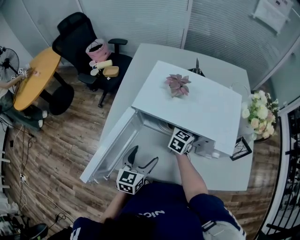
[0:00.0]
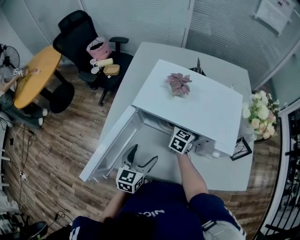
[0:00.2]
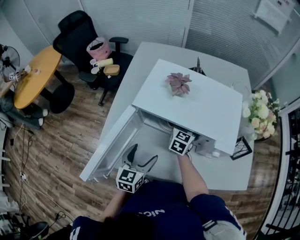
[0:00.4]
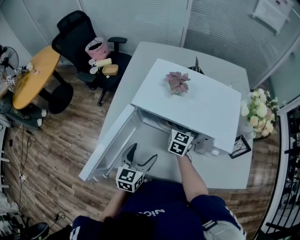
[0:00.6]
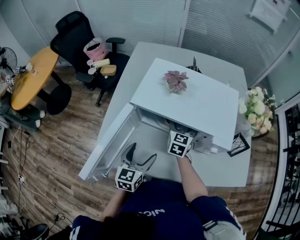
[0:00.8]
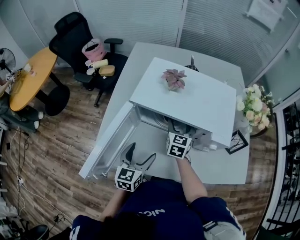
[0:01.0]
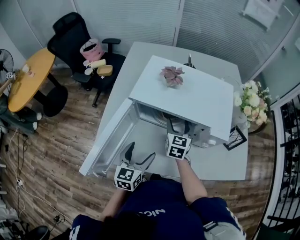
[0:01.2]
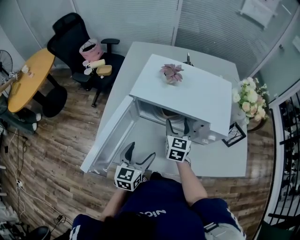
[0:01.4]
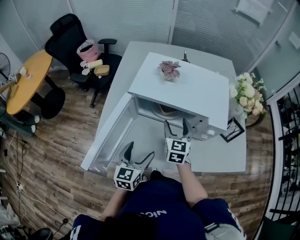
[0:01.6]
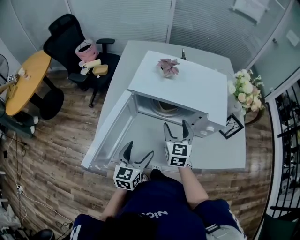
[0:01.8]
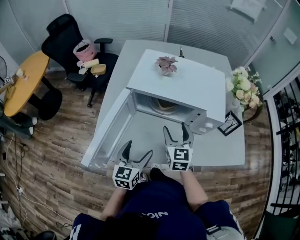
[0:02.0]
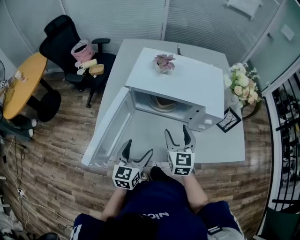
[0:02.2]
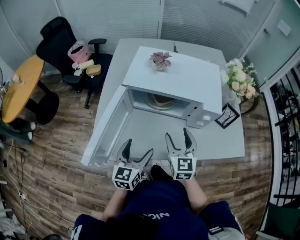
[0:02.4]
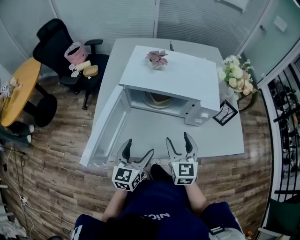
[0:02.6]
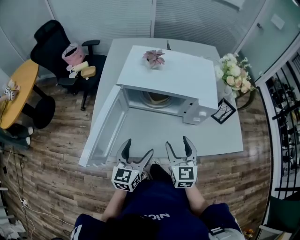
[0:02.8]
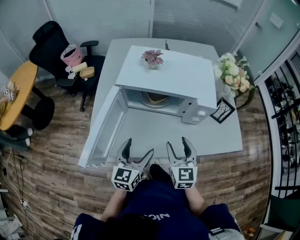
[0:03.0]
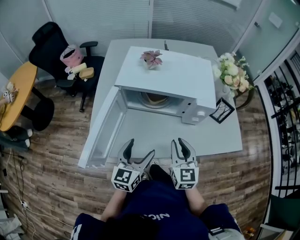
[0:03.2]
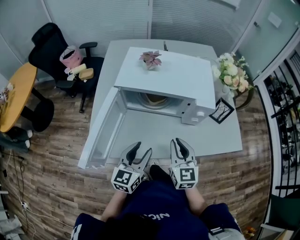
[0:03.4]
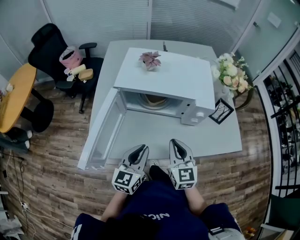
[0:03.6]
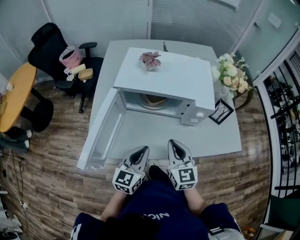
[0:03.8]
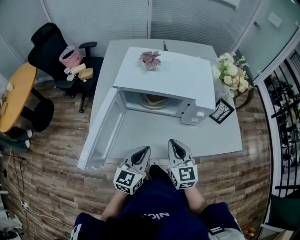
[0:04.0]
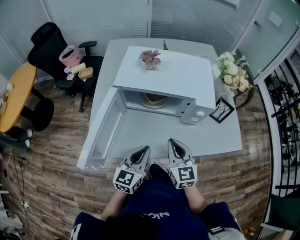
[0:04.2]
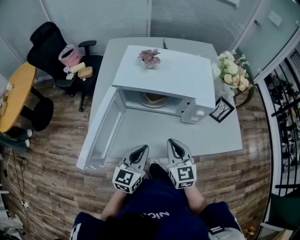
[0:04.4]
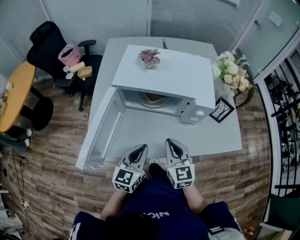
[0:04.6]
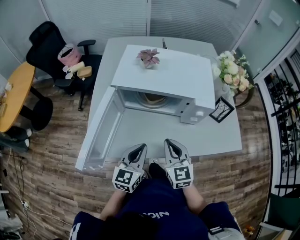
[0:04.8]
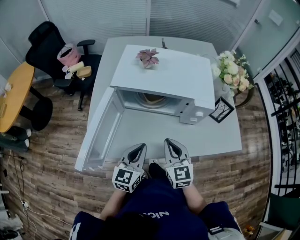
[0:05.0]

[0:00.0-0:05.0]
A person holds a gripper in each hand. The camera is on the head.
0:00.0 to 0:01.6: The right gripper moves backward and upward, about 15 cm, and opens up. Meanwhile the left gripper is displaced backward by approximately 5 cm.
0:01.6 to 0:03.4: The left gripper shifts by roughly 5 cm, and closes its fingers. The right gripper travels backward by some 15 cm, and closes up.
0:03.4 to 0:05.0: The left gripper closes up.

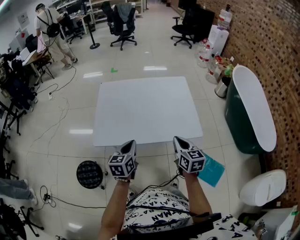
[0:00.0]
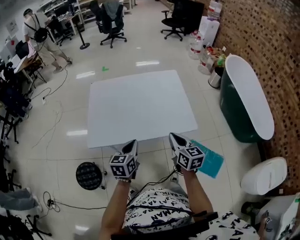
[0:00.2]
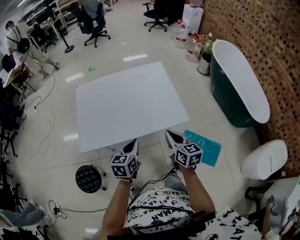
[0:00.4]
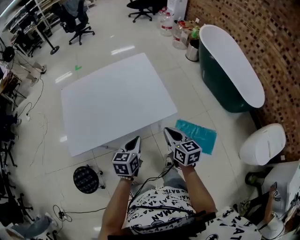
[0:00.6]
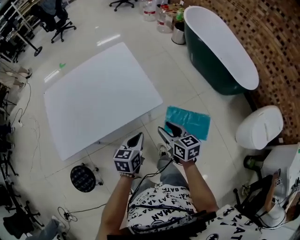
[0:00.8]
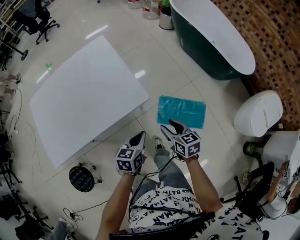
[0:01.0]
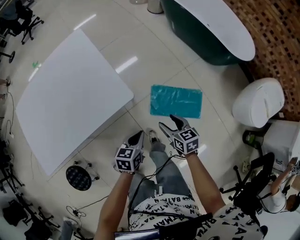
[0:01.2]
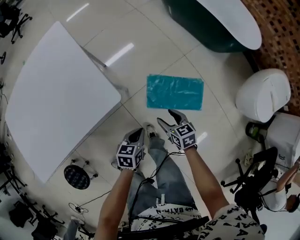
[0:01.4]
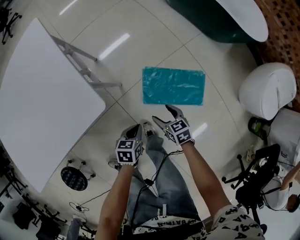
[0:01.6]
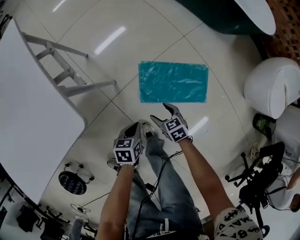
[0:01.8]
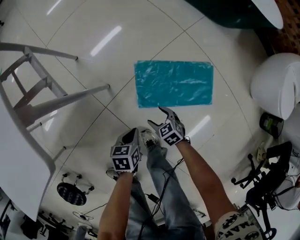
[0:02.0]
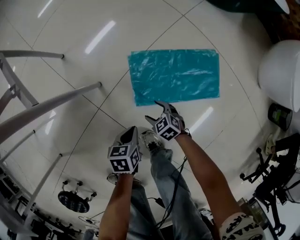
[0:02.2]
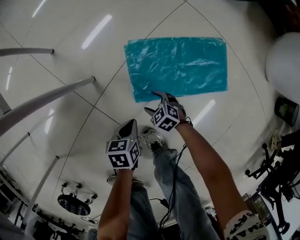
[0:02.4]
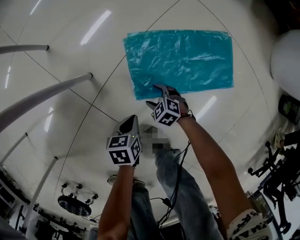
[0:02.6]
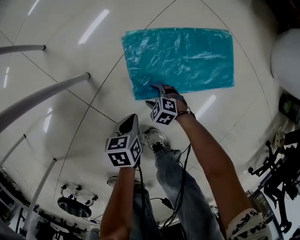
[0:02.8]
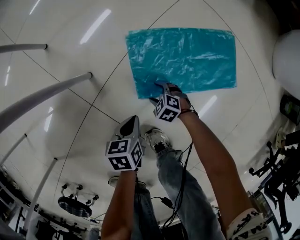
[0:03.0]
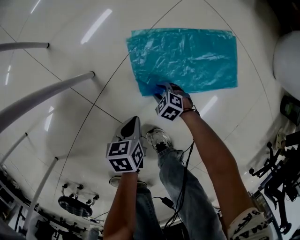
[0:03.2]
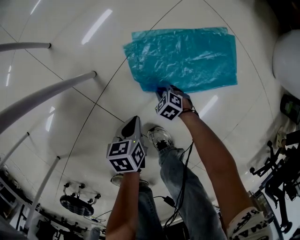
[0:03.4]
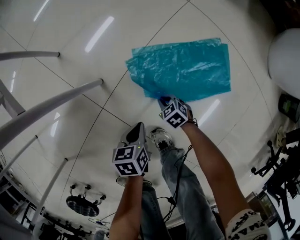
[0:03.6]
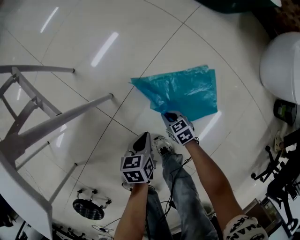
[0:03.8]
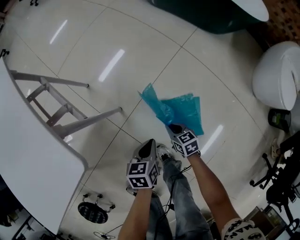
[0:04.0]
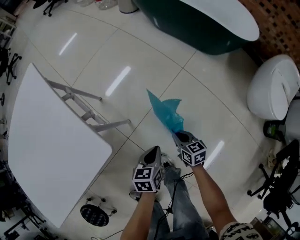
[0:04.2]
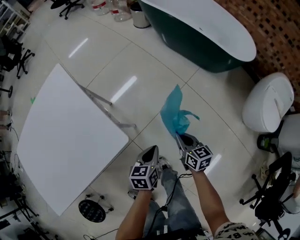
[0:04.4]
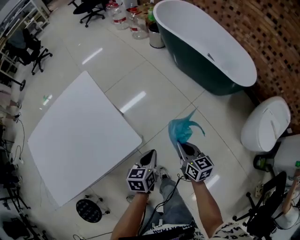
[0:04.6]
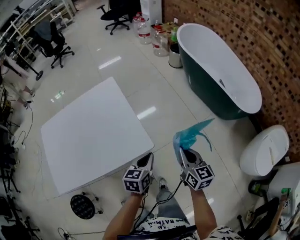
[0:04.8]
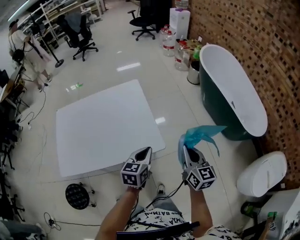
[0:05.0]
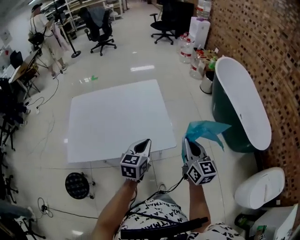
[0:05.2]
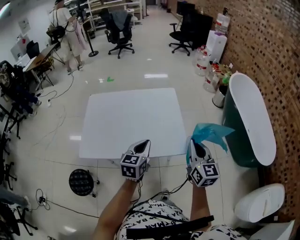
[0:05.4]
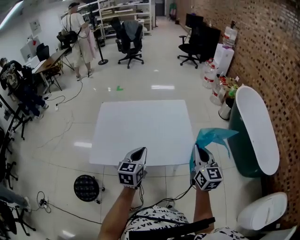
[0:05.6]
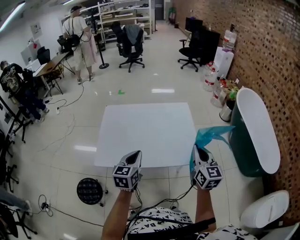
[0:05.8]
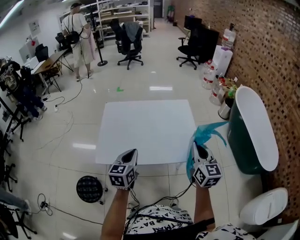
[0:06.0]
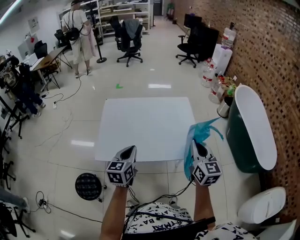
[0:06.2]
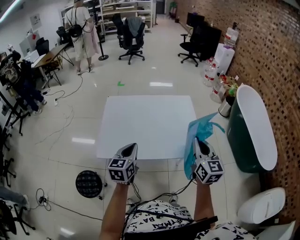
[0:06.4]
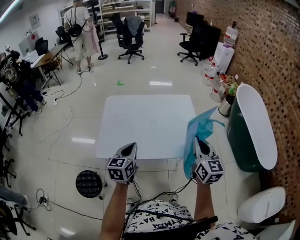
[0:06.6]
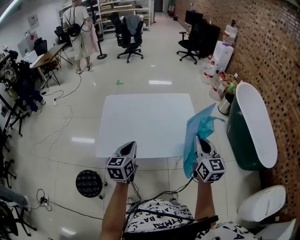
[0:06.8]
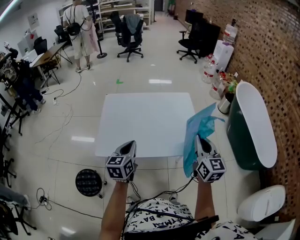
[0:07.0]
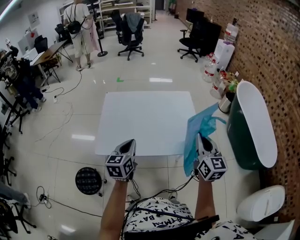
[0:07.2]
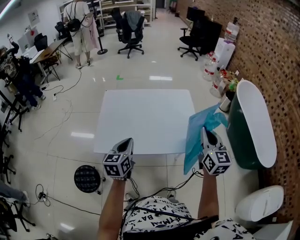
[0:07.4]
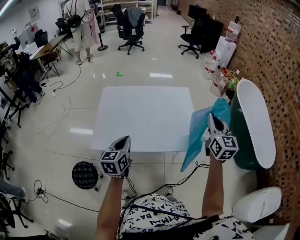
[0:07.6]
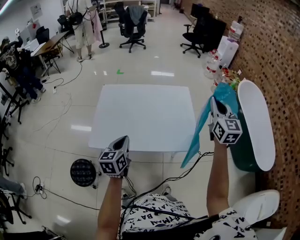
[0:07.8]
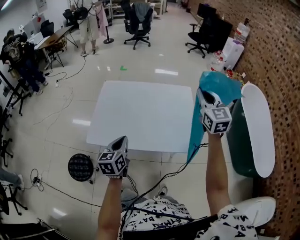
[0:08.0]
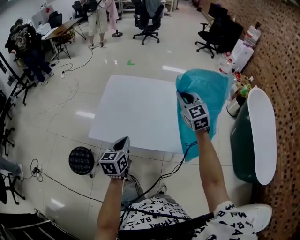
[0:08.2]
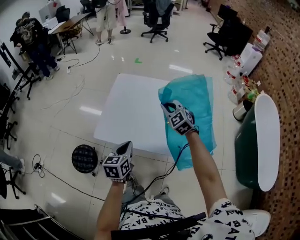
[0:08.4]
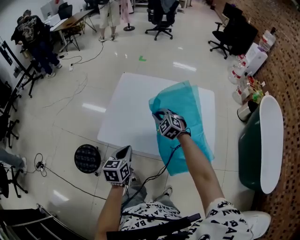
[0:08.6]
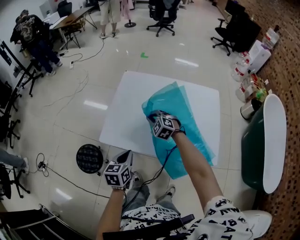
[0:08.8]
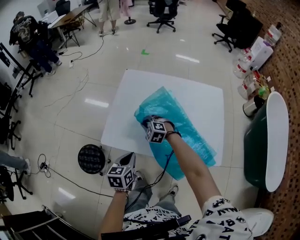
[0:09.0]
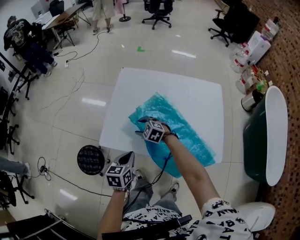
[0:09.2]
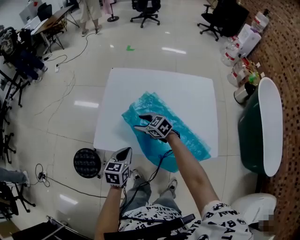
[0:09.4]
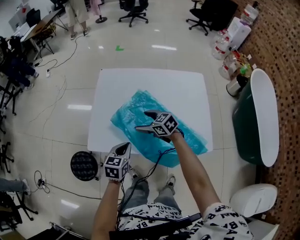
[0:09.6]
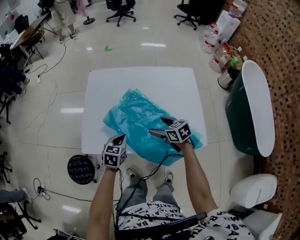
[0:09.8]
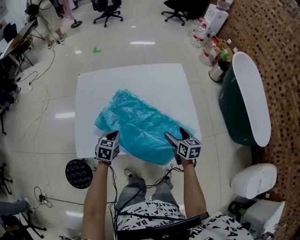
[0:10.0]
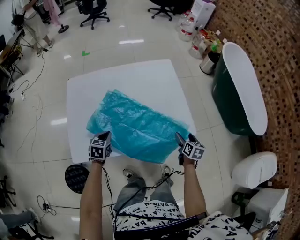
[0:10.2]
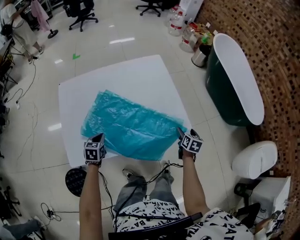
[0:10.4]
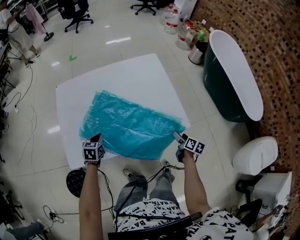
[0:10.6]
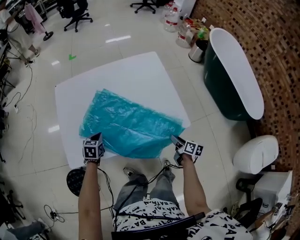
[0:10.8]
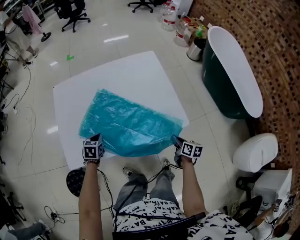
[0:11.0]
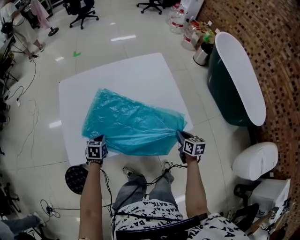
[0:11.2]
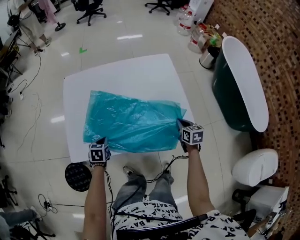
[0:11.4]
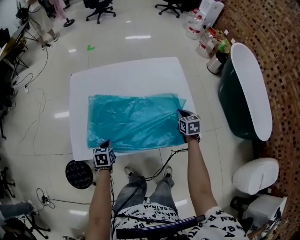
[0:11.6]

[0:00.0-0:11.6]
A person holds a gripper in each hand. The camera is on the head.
0:00.0 to 0:01.4: The left gripper shifts by about 50 cm, and changes its angle by approximately 50 degrees. The right gripper shifts about 35 cm downward, swivels some 30 degrees, and opens.
0:01.4 to 0:02.8: Both grippers travel together downward, some 50 cm. The right gripper swivels some 40 degrees.
0:02.8 to 0:04.4: The two grippers go about 60 cm upward. The right gripper angles its fingers upward, by some 40 degrees, and closes its fingers; the left gripper swivels roughly 20 degrees.
0:04.4 to 0:05.8: The right gripper is displaced upward by about 40 cm, and rotates some 40 degrees; the left gripper changes place by roughly 60 cm, and turns by approximately 50 degrees.
0:05.8 to 0:07.2: The left gripper is displaced to the left by some 5 cm.
0:07.2 to 0:08.8: The right gripper changes place by approximately 50 cm, and tips its fingers downward by some 40 degrees; the left gripper moves downward, roughly 15 cm, and changes its angle by roughly 20 degrees.
0:08.8 to 0:10.2: The left gripper shifts by roughly 20 cm, and swivels some 40 degrees, while the right gripper moves up and down over about 10 cm, changing direction 2 times, rotates around the line of its fingers by some 100 degrees, clockwise from behind, and opens up.
0:10.2 to 0:11.6: The left gripper shifts by approximately 5 cm, while the right gripper shifts roughly 15 cm forward, swivels some 30 degrees, and closes up.

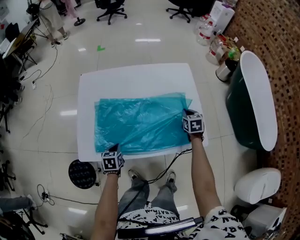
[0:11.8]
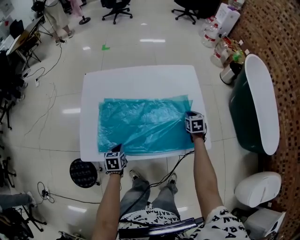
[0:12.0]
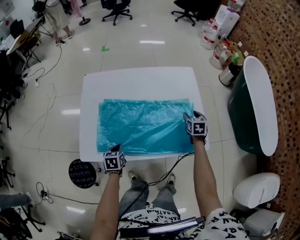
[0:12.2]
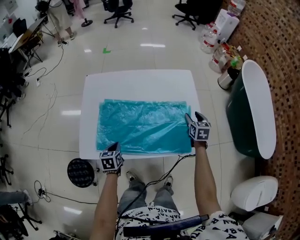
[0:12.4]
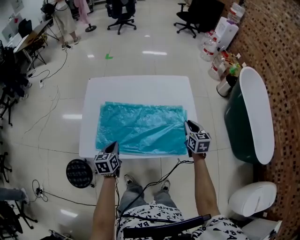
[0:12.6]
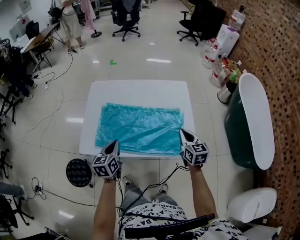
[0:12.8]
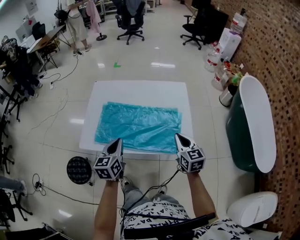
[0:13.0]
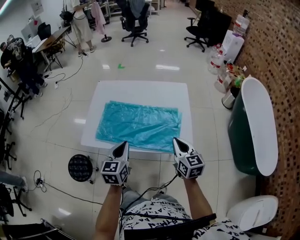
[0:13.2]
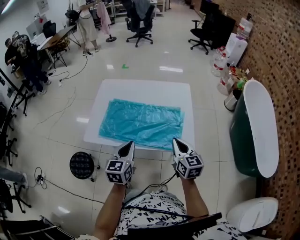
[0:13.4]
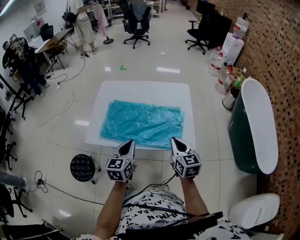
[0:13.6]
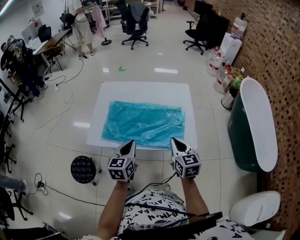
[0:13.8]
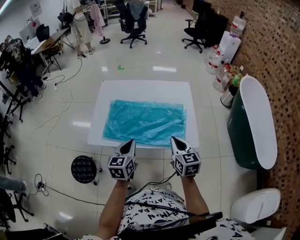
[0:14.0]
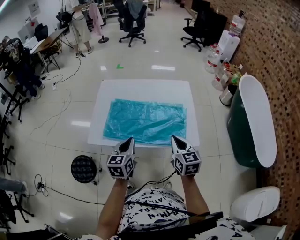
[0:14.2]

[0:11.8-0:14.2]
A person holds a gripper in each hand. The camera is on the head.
0:11.8 to 0:13.0: The left gripper goes roughly 25 cm upward, and points its fingers roughly 30 degrees further upward. The right gripper shifts about 25 cm upward and backward, rotates some 30 degrees, and opens, then closes again.
0:13.0 to 0:14.2: The right gripper heads to the left and backward, covering some 10 cm.

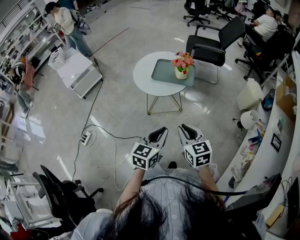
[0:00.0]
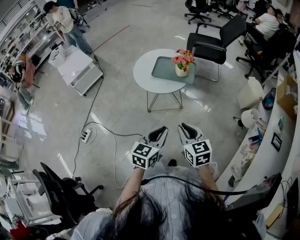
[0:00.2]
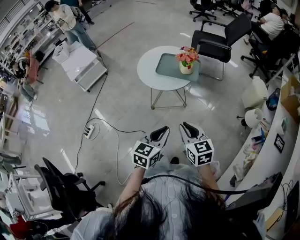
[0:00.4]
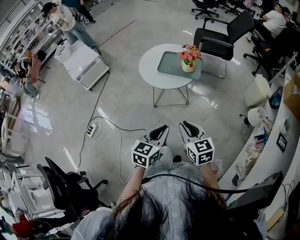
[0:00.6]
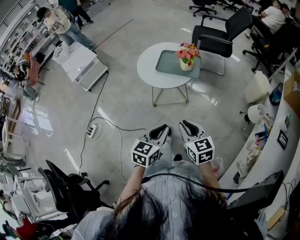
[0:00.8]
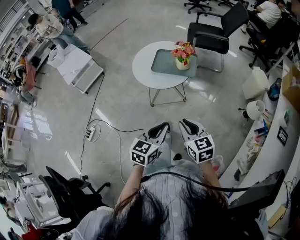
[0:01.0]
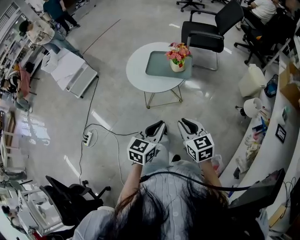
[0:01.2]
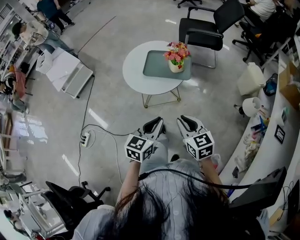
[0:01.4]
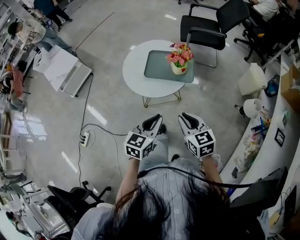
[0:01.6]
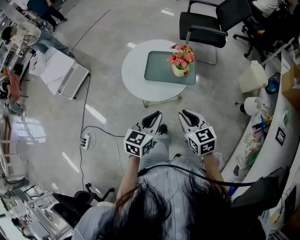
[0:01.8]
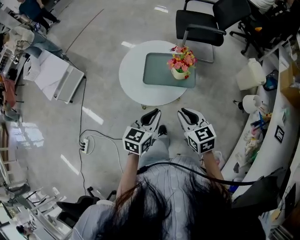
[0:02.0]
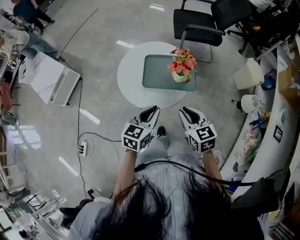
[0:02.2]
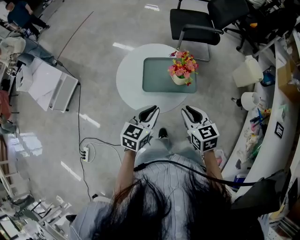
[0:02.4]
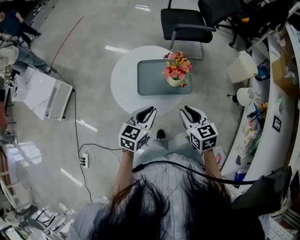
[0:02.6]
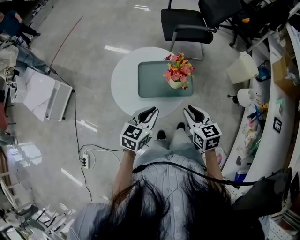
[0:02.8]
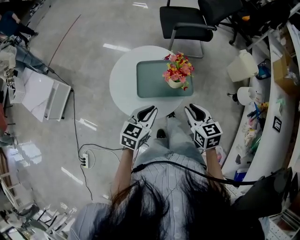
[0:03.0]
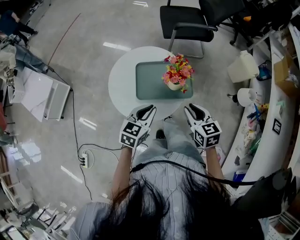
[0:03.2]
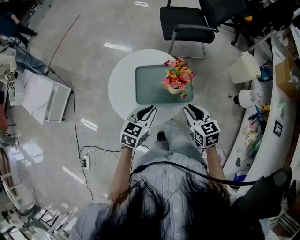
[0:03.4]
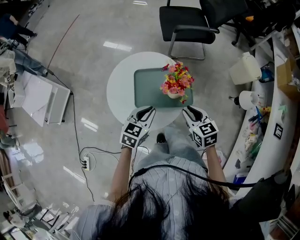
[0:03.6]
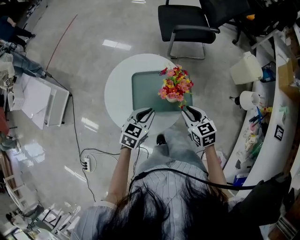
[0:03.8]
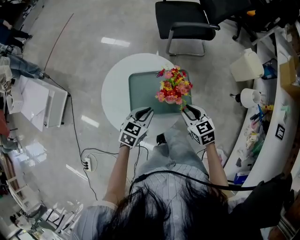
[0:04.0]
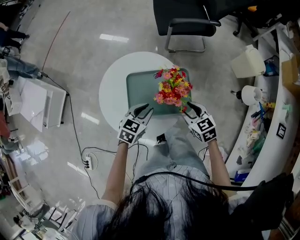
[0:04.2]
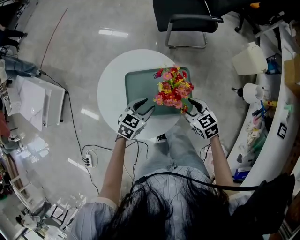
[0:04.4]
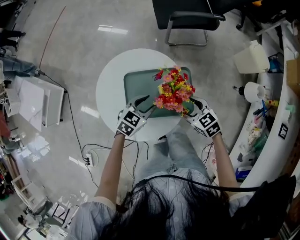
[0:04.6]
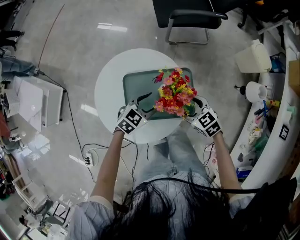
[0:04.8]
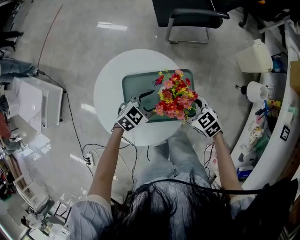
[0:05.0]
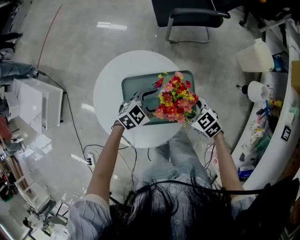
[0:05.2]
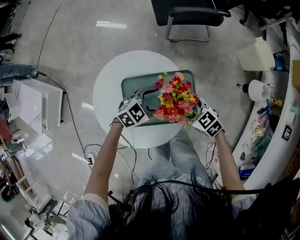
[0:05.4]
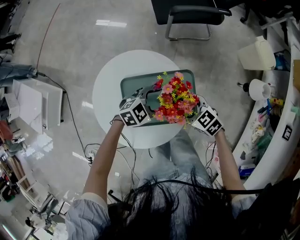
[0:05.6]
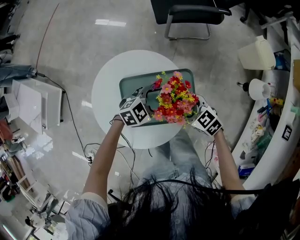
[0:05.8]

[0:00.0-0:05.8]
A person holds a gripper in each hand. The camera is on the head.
0:00.0 to 0:01.4: Both grippers move forward, some 10 cm.
0:01.4 to 0:02.8: The two grippers go some 20 cm forward.
0:02.8 to 0:04.4: The right gripper shifts about 20 cm downward and forward, and opens its fingers. The left gripper is displaced forward and downward by roughly 20 cm, changes its angle by about 20 degrees, and opens.
0:04.4 to 0:05.8: The right gripper shifts by some 5 cm, and opens its fingers. The left gripper shifts by roughly 10 cm, rotates approximately 40 degrees, and opens up.
